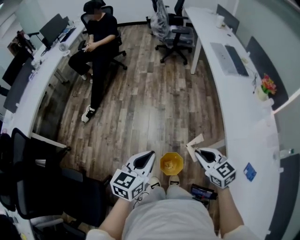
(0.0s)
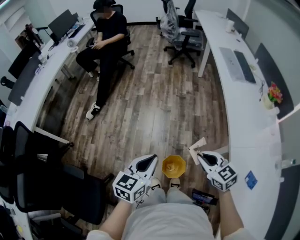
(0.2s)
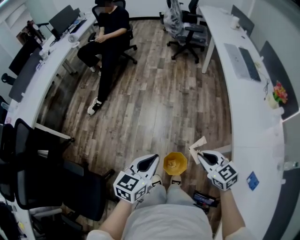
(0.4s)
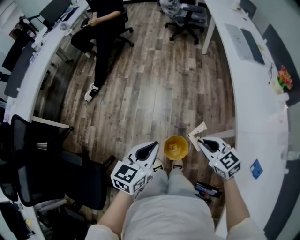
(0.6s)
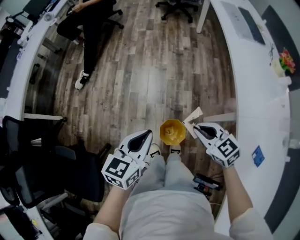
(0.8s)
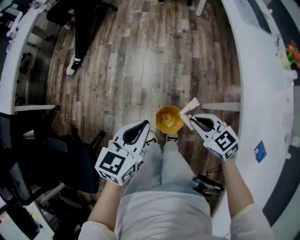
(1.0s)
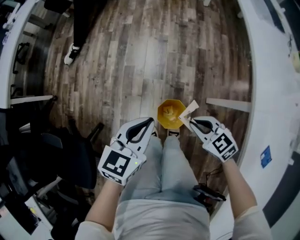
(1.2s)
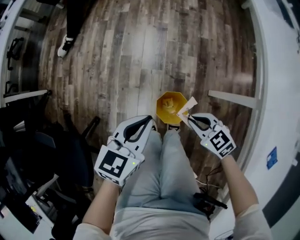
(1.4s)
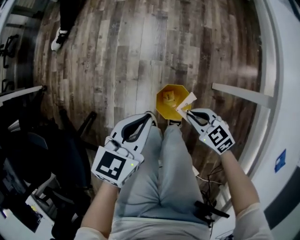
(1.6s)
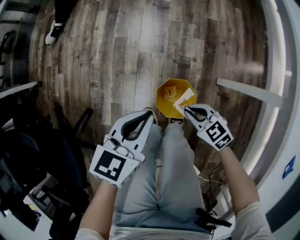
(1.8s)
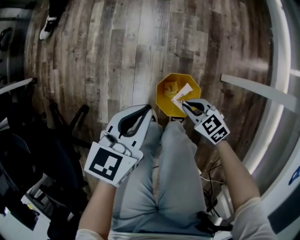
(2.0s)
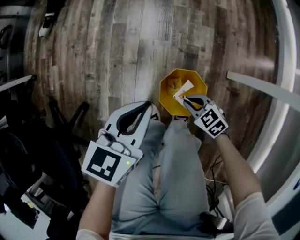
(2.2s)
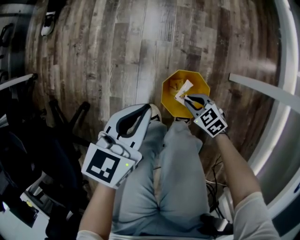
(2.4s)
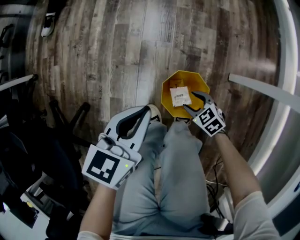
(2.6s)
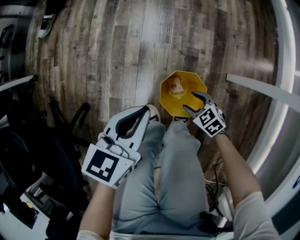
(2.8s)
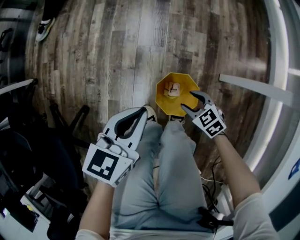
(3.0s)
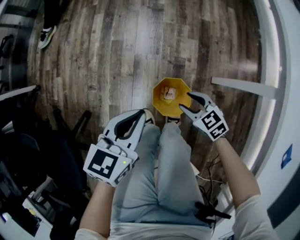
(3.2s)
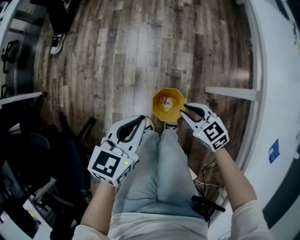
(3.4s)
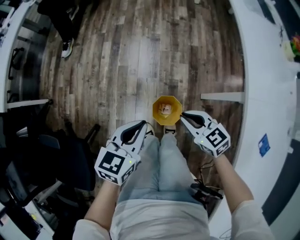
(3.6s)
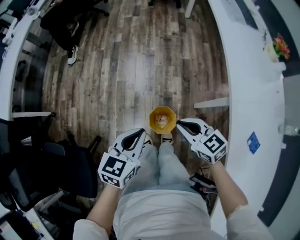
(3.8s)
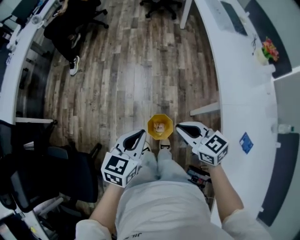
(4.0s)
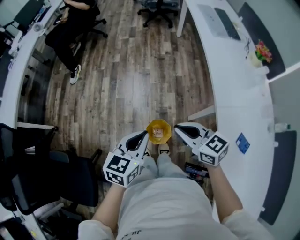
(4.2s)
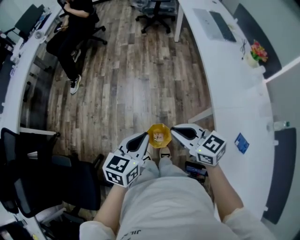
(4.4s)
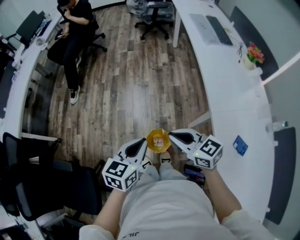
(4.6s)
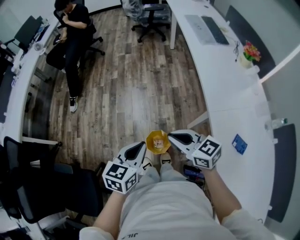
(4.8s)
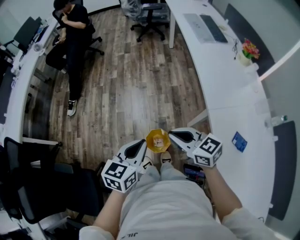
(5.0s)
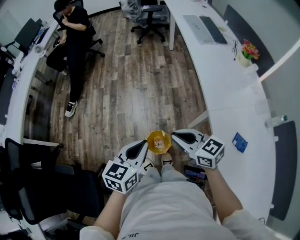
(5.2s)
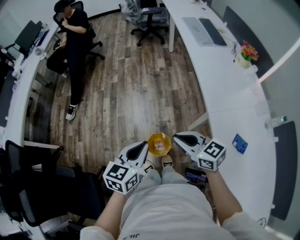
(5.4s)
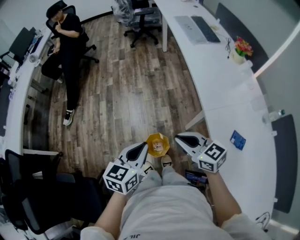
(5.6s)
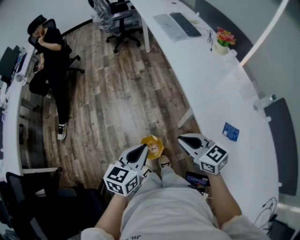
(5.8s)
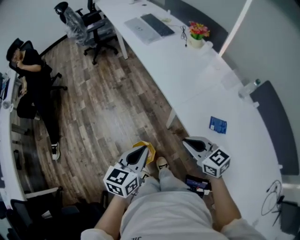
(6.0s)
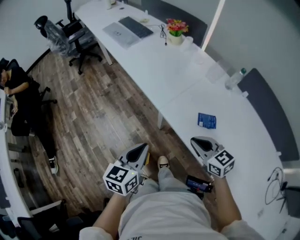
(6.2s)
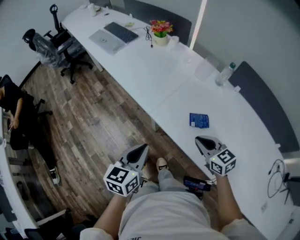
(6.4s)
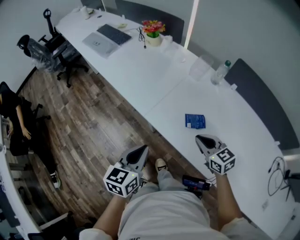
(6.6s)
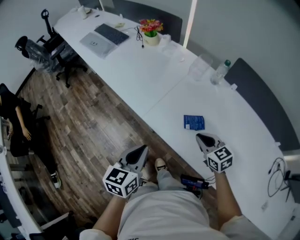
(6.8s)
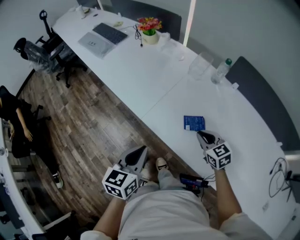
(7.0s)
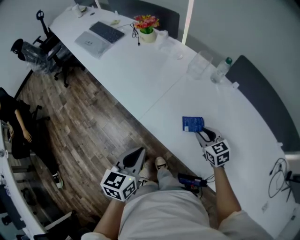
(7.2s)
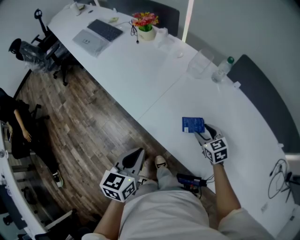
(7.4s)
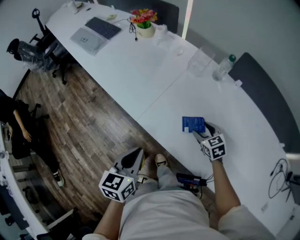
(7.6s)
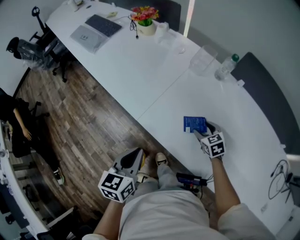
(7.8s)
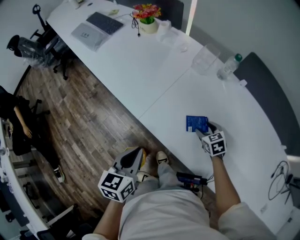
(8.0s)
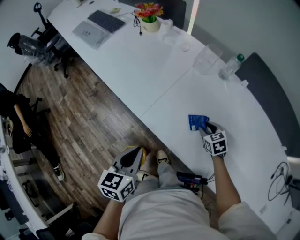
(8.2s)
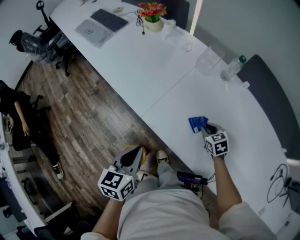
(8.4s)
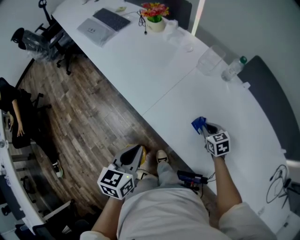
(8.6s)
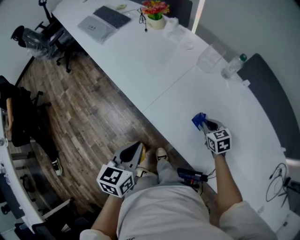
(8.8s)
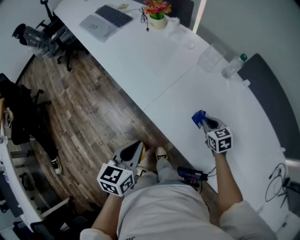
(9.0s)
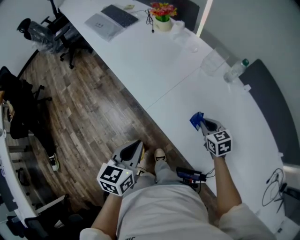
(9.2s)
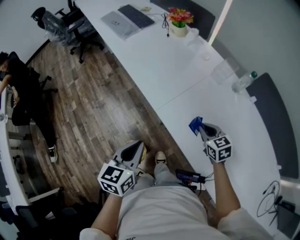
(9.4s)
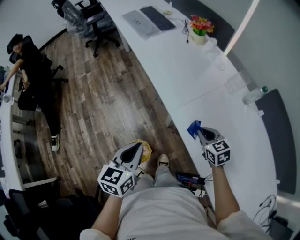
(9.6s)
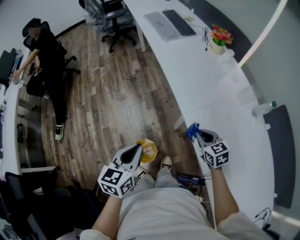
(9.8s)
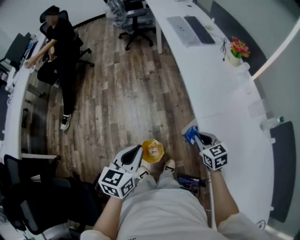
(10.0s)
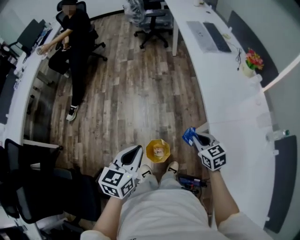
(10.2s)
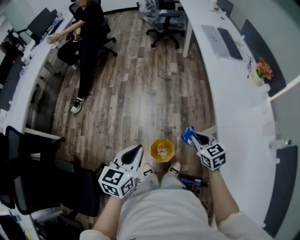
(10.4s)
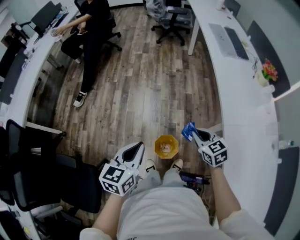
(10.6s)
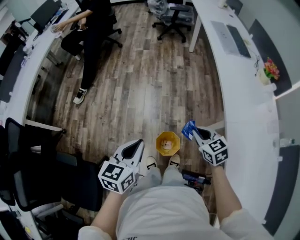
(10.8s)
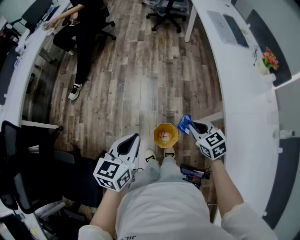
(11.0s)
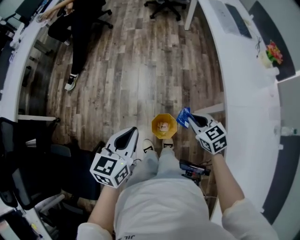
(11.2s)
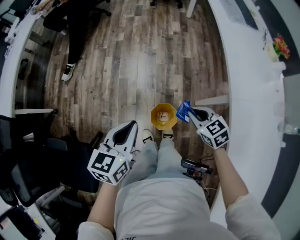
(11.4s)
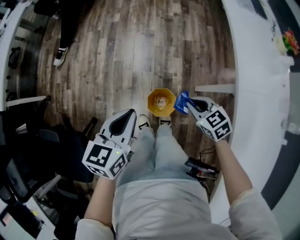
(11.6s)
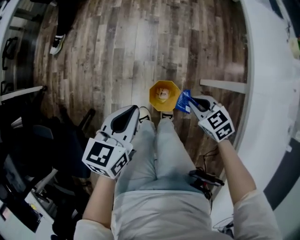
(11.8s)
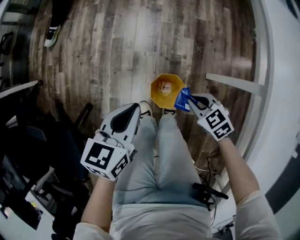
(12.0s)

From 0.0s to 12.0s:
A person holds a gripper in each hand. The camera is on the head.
From 0.0s to 1.6s: The grippers both shift downward by some 35 cm. The right gripper rotates some 30 degrees.
From 1.6s to 3.0s: The right gripper goes roughly 20 cm downward, and opens up; the left gripper goes roughly 10 cm downward.
From 3.0s to 4.4s: The right gripper moves upward, some 60 cm, tips its fingers upward by about 30 degrees, and closes. Meanwhile the left gripper travels upward by roughly 35 cm.
From 4.4s to 6.0s: The right gripper shifts by roughly 20 cm, and changes its angle by some 30 degrees. The left gripper moves some 15 cm, and rotates about 20 degrees.
From 6.0s to 7.6s: The right gripper changes place by approximately 35 cm, swivels about 40 degrees, and opens its fingers. The left gripper changes place by roughly 20 cm.
From 7.6s to 9.0s: The right gripper closes up.
From 9.0s to 10.4s: The left gripper changes place by approximately 35 cm, and swivels approximately 40 degrees. Meanwhile the right gripper moves roughly 40 cm, and swivels roughly 50 degrees.
From 10.4s to 12.0s: Both grippers move downward, roughly 25 cm. The right gripper swivels about 30 degrees.

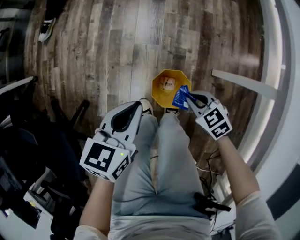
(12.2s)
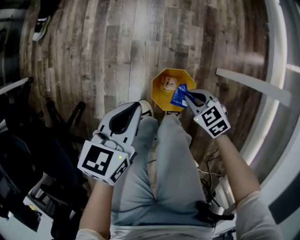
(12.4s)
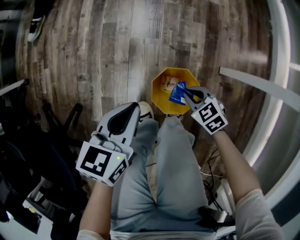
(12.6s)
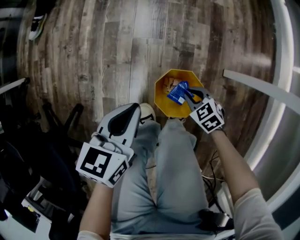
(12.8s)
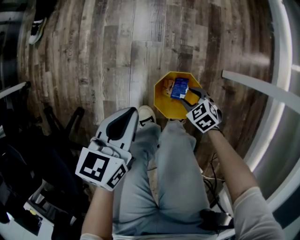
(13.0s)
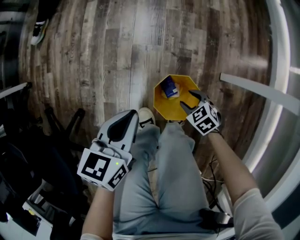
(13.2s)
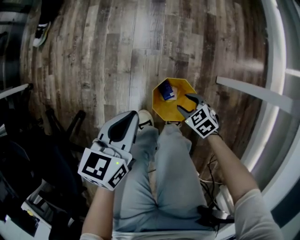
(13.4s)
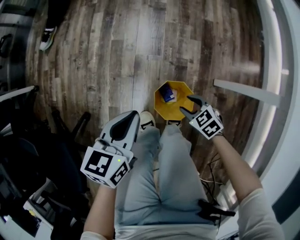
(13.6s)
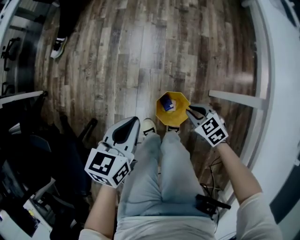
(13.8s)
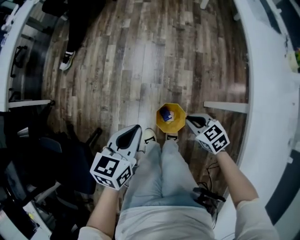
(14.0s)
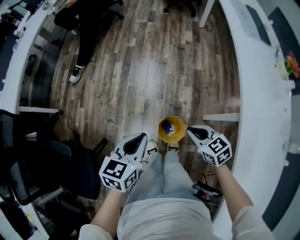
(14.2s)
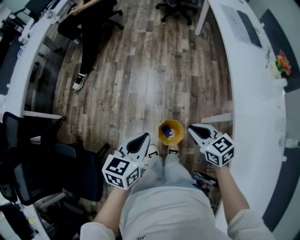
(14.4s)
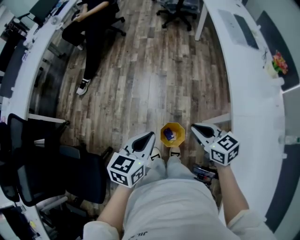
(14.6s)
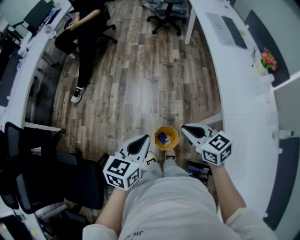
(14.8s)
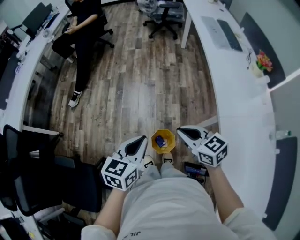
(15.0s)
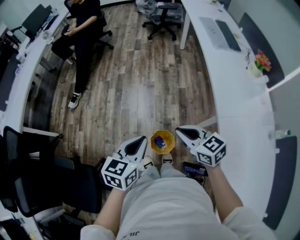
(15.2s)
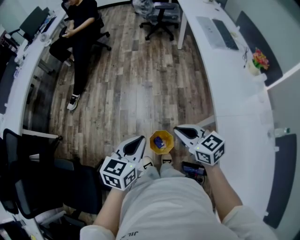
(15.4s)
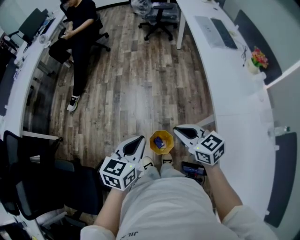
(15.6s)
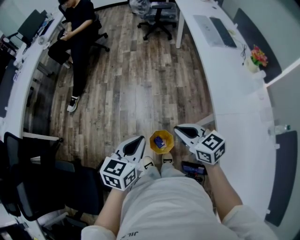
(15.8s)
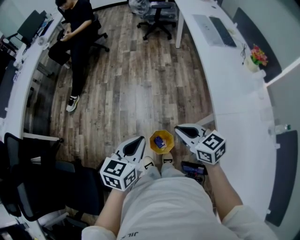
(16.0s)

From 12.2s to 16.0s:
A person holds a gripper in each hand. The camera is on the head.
From 12.2s to 13.4s: The left gripper goes roughly 10 cm downward. The right gripper shifts roughly 15 cm downward, and opens.
From 13.4s to 14.8s: The right gripper moves upward, some 60 cm, angles its fingers upward, by some 30 degrees, and closes up; the left gripper travels upward by some 40 cm.
From 14.8s to 16.0s: The grippers make only small movements.

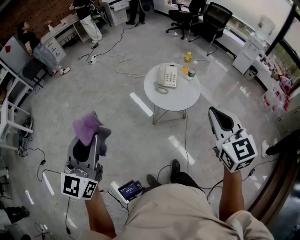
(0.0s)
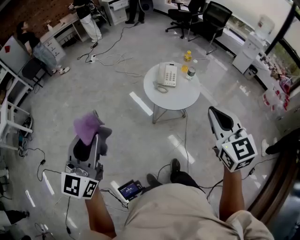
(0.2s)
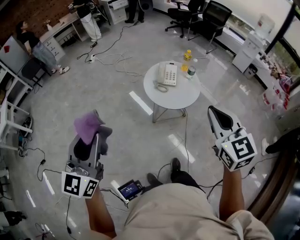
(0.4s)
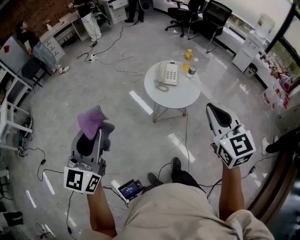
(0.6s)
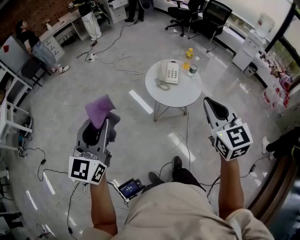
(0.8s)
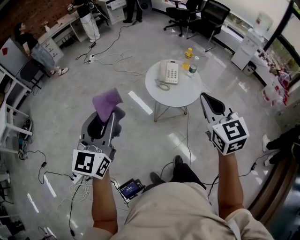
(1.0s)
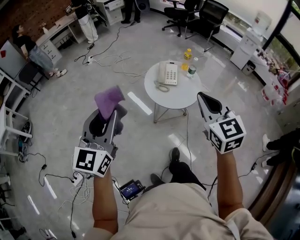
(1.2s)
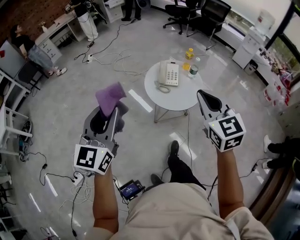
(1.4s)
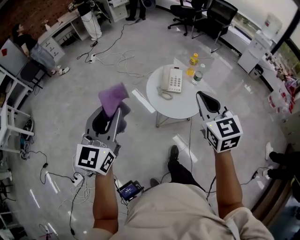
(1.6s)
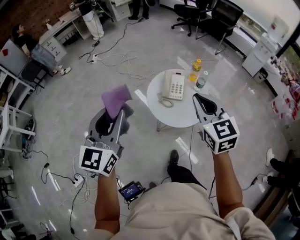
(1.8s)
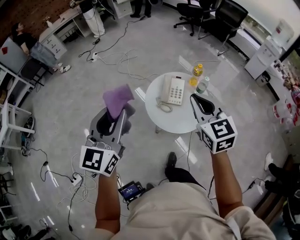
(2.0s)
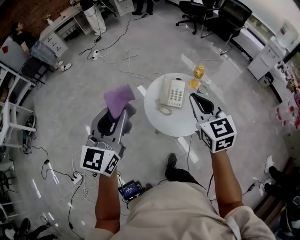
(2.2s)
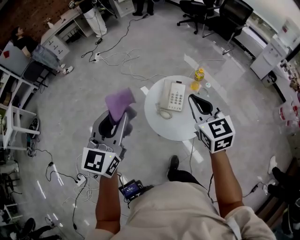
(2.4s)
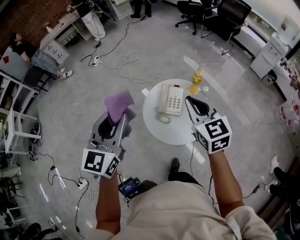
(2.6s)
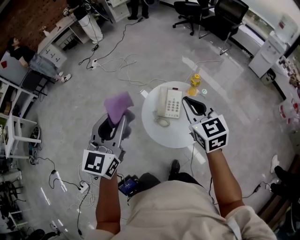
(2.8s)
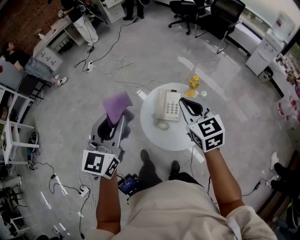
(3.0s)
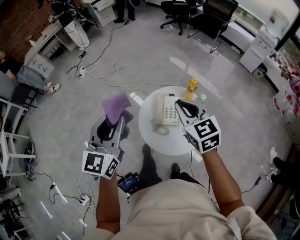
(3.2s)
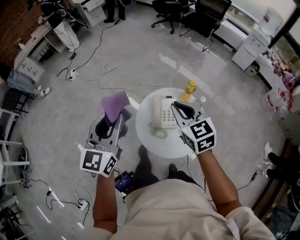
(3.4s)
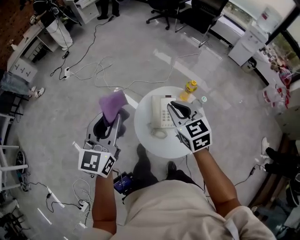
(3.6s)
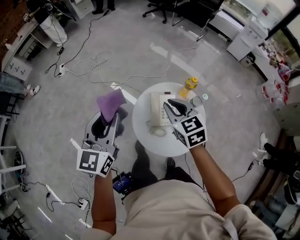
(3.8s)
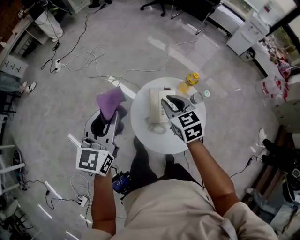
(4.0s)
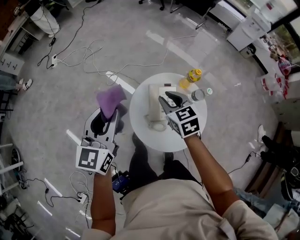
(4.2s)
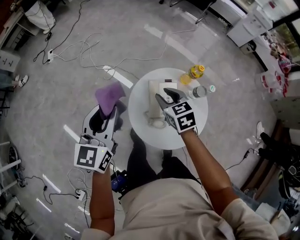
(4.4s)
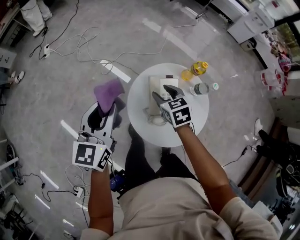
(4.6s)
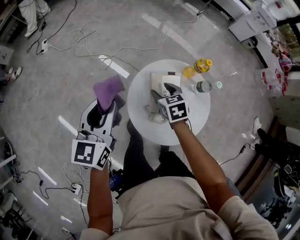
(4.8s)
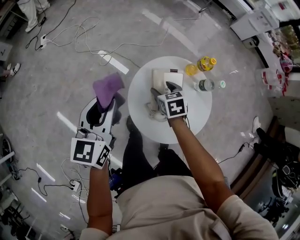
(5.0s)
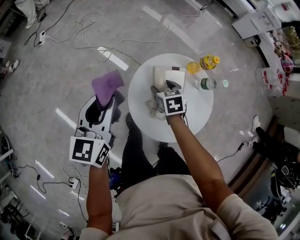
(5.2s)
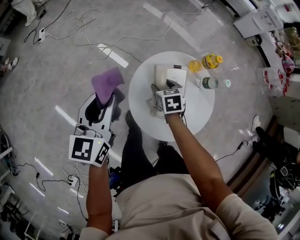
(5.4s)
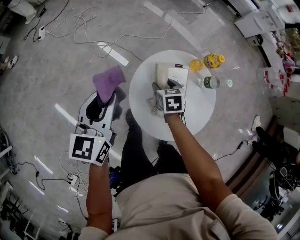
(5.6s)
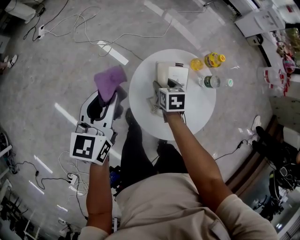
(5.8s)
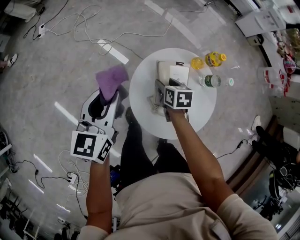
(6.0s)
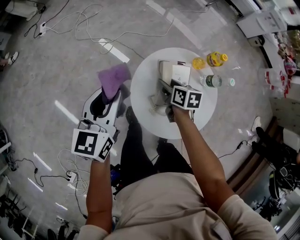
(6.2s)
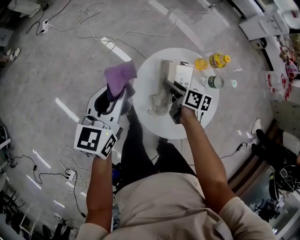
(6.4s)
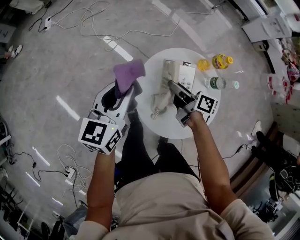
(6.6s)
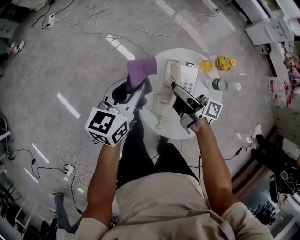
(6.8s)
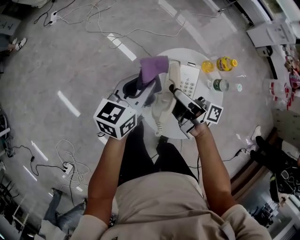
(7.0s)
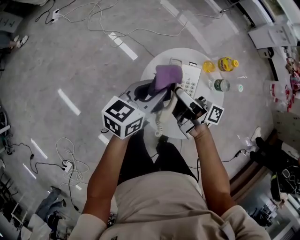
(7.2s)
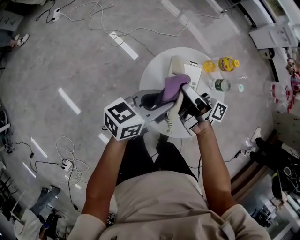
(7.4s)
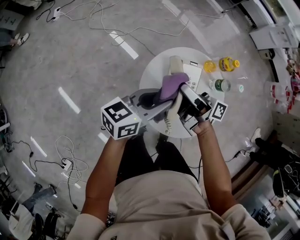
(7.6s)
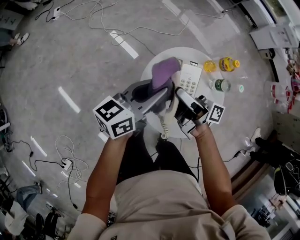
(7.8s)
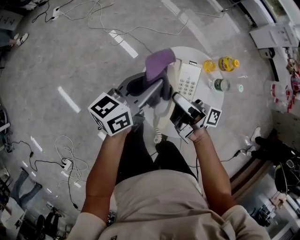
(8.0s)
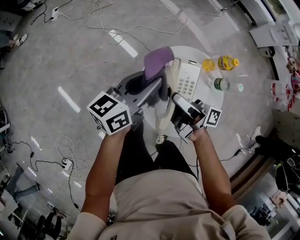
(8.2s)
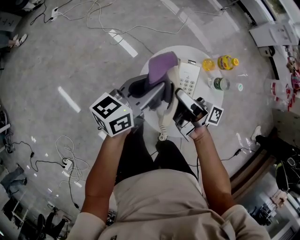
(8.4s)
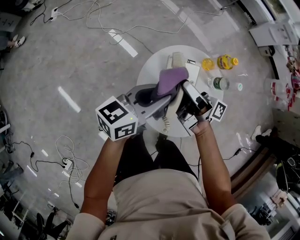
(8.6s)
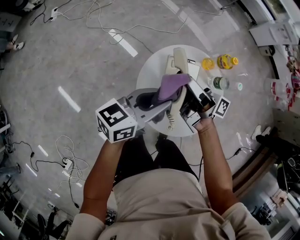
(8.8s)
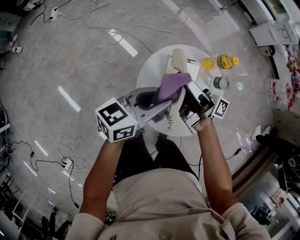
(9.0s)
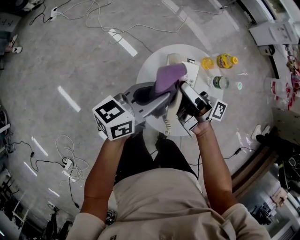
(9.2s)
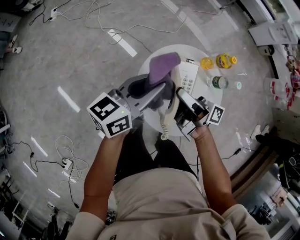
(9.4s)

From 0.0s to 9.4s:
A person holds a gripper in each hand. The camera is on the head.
From 0.0s to 1.6s: Both grippers move forward, roughly 20 cm.
From 1.6s to 3.2s: Both grippers travel together forward, about 30 cm.
From 3.2s to 4.8s: The grippers both shift downward and forward by approximately 30 cm. The right gripper swivels approximately 30 degrees, and opens its fingers.
From 4.8s to 6.2s: Both grippers travel together downward, about 5 cm. The right gripper rotates some 30 degrees.
From 6.2s to 7.8s: The left gripper shifts about 10 cm to the right, and turns by about 30 degrees. The right gripper travels upward by roughly 20 cm, and tips its fingers upward by some 60 degrees.
From 7.8s to 9.4s: The grippers move only a little.
